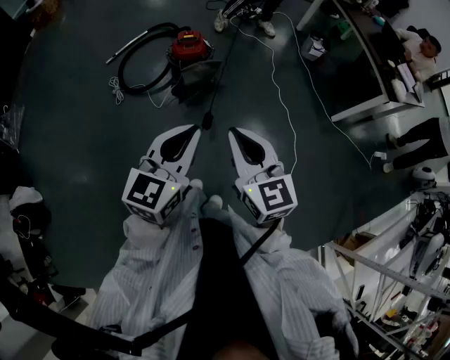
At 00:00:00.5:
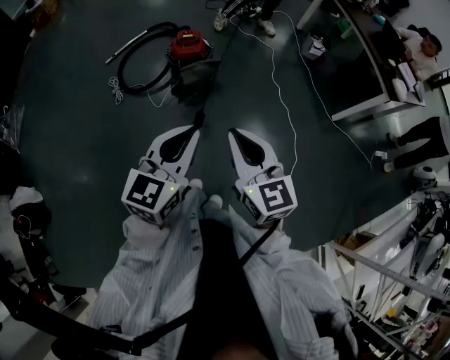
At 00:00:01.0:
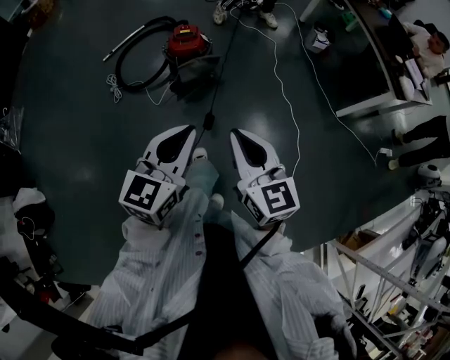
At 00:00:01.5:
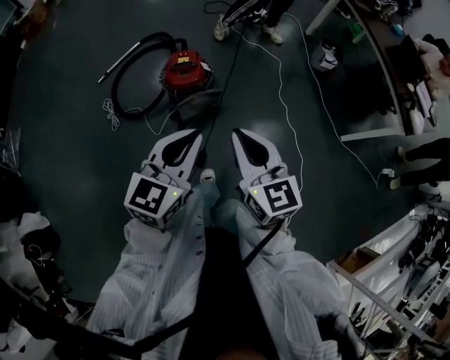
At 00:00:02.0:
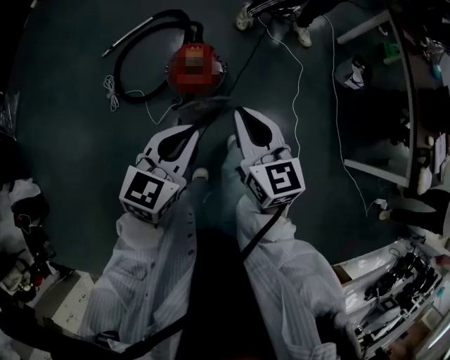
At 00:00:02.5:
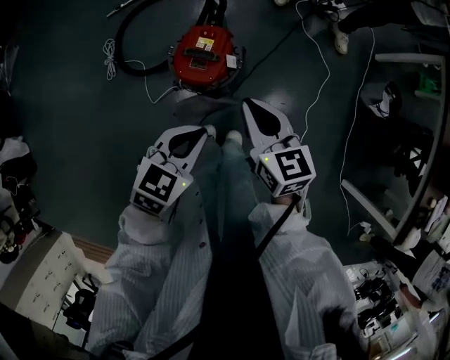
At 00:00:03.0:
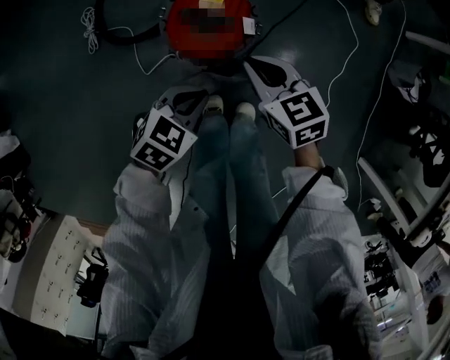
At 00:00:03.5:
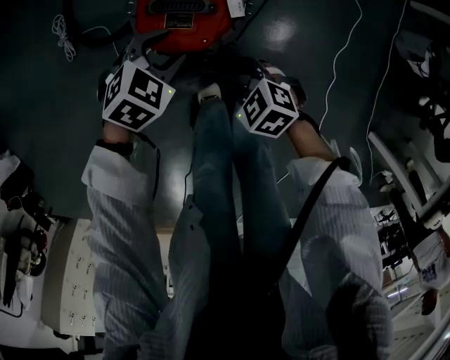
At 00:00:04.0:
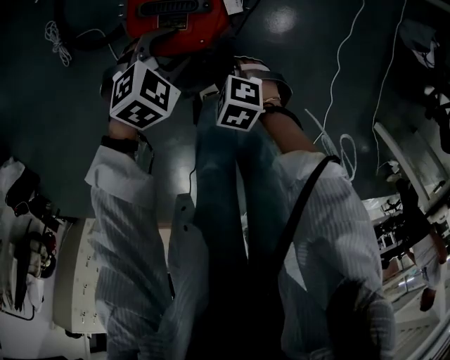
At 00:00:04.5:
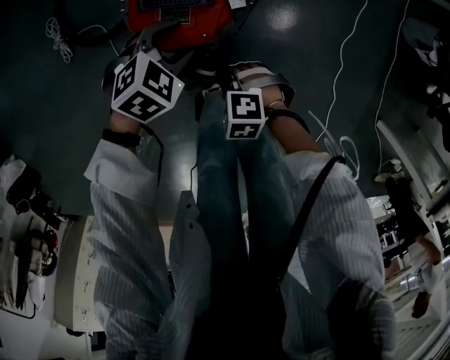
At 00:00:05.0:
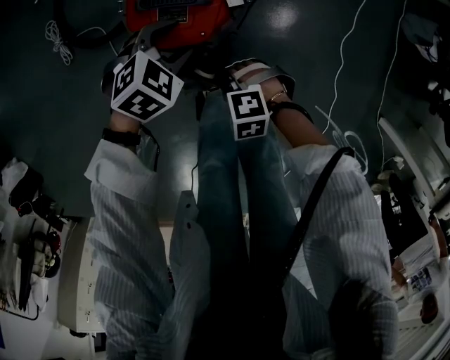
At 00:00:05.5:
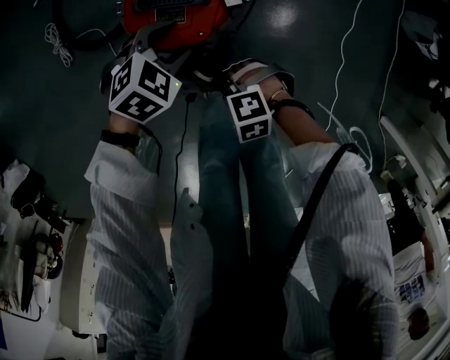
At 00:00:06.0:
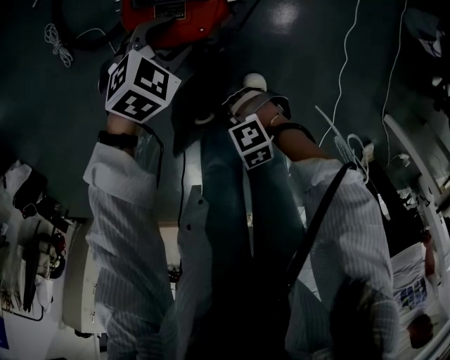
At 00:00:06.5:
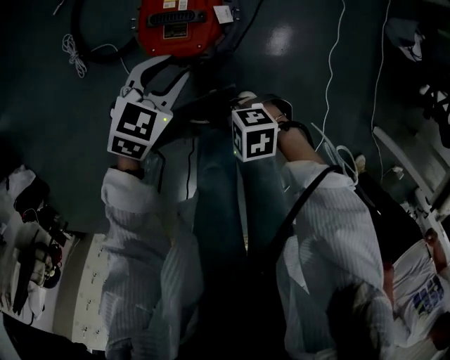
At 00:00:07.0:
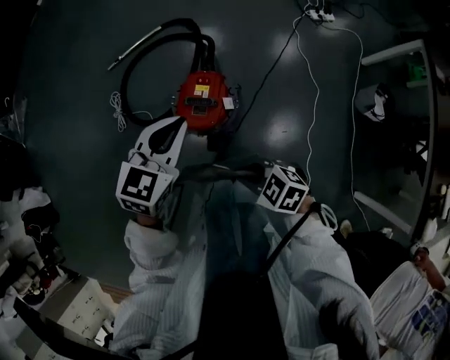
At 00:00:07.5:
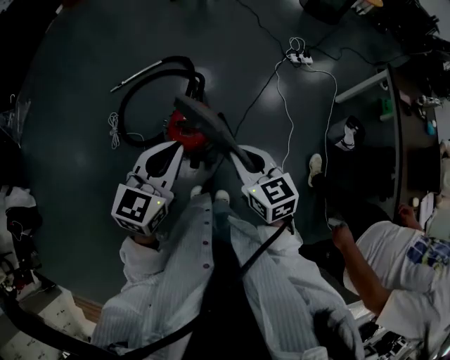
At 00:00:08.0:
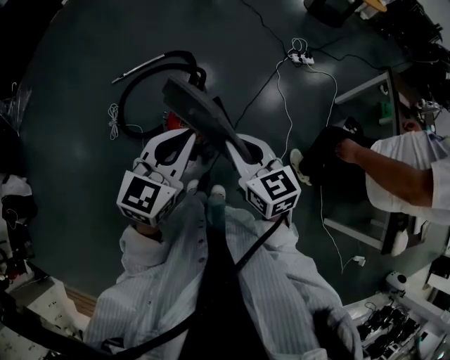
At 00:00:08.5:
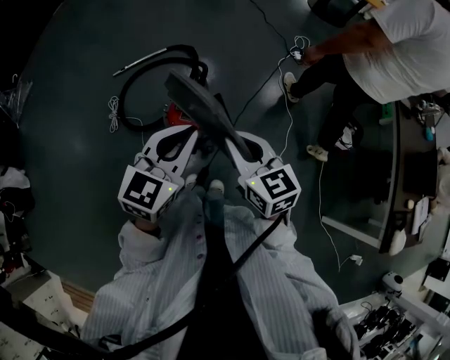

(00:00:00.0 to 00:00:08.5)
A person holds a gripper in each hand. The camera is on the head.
00:00:00.0 - 00:00:02.0: Both grippers are carried forward, roughly 50 cm.
00:00:02.0 - 00:00:04.0: The two grippers go roughly 60 cm downward. The left gripper points its fingers some 40 degrees further downward, and opens its fingers; the right gripper tilts its fingers roughly 60 degrees downward, and opens.
00:00:04.0 - 00:00:06.5: Both grippers move upward, roughly 15 cm. The left gripper swivels about 20 degrees. Meanwhile the right gripper turns by roughly 30 degrees, and closes its fingers.
00:00:06.5 - 00:00:08.5: The two grippers go about 50 cm upward. The left gripper tips its fingers upward by some 30 degrees, and closes, while the right gripper turns by some 70 degrees.

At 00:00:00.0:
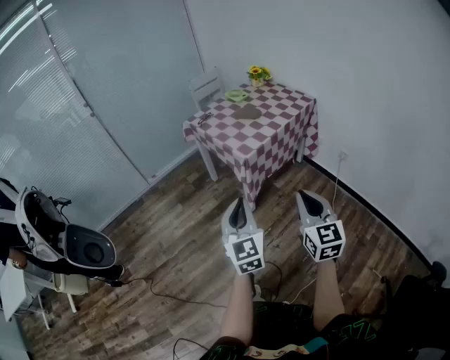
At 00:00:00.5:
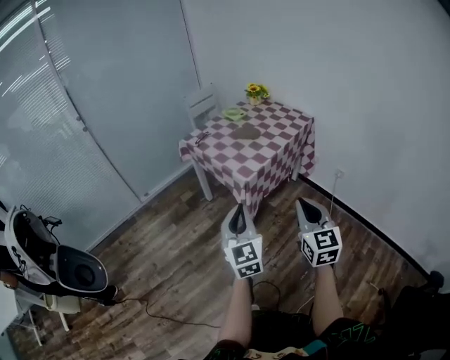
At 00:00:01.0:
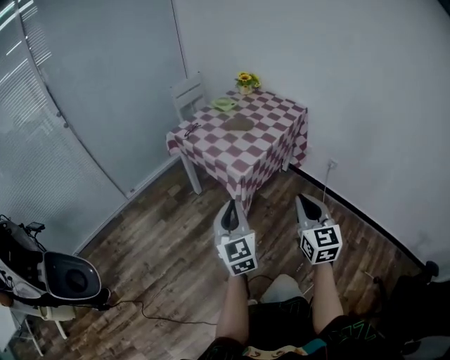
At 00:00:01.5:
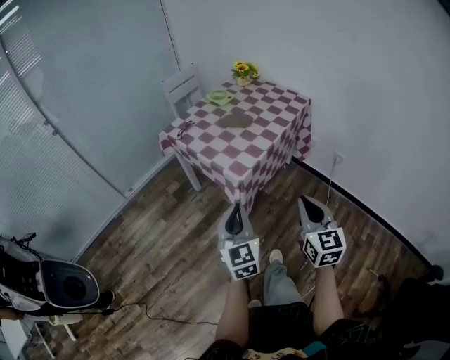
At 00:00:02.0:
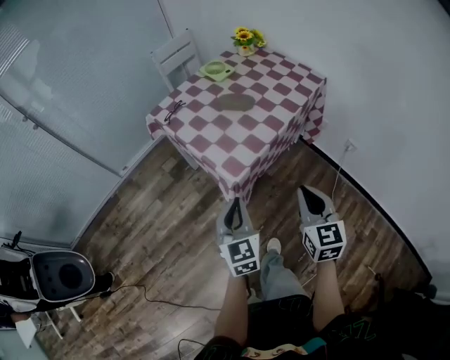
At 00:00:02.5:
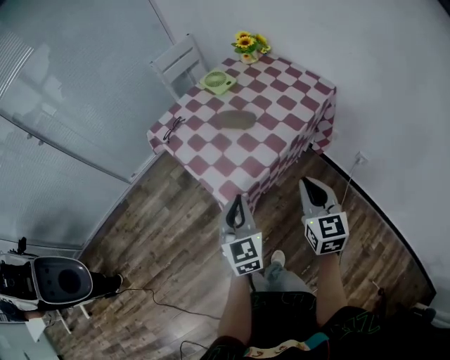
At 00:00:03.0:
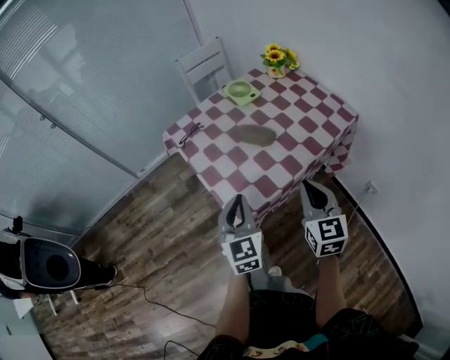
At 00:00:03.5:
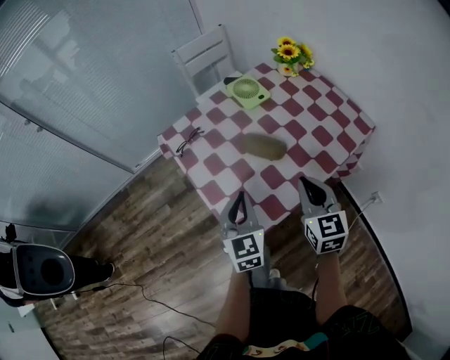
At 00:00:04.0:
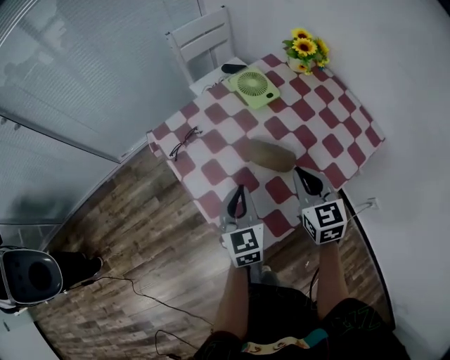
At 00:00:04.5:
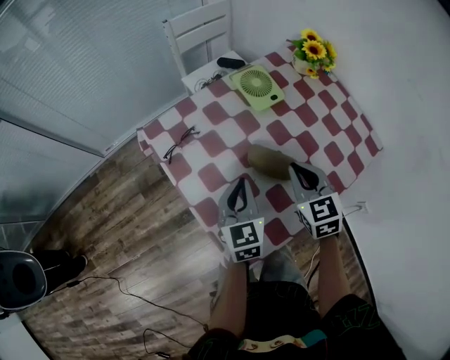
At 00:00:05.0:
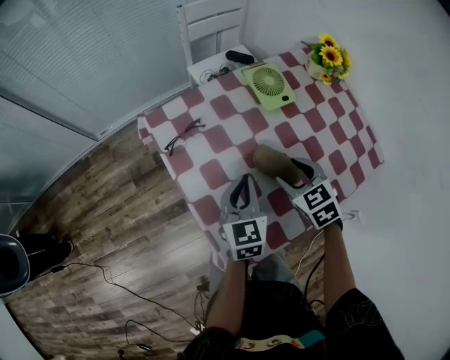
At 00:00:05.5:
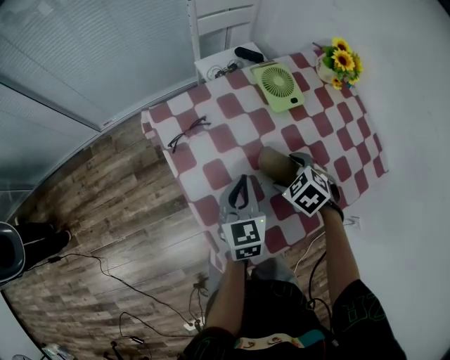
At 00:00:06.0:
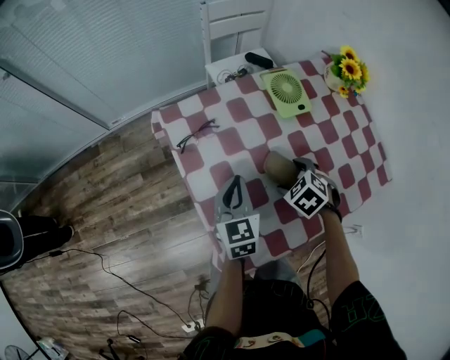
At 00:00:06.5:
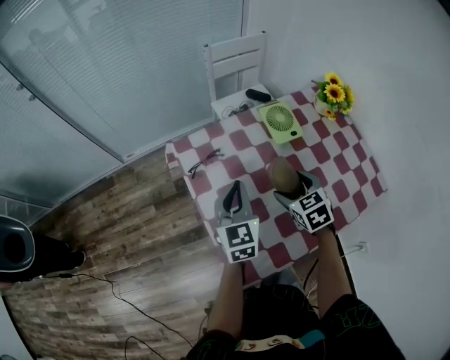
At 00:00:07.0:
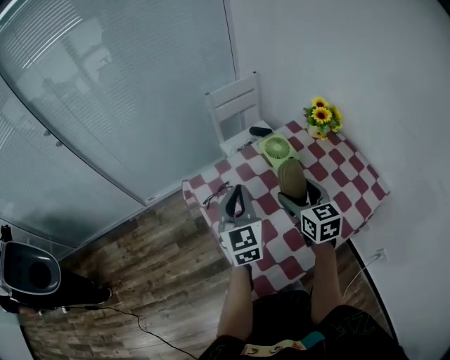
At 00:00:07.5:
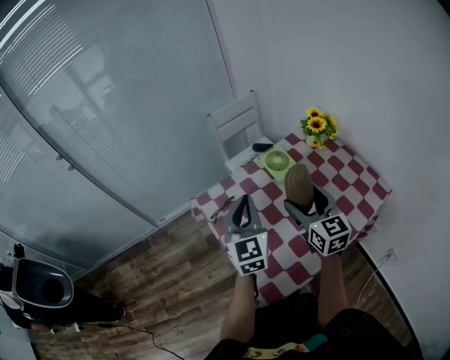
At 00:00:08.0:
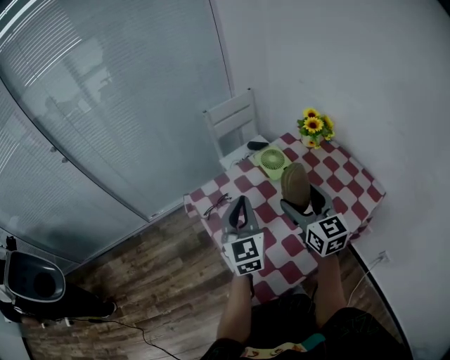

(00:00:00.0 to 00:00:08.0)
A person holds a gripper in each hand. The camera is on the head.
00:00:00.0 - 00:00:02.0: The right gripper shifts some 30 cm forward. Meanwhile the left gripper is displaced forward and downward by about 30 cm.
00:00:02.0 - 00:00:04.0: Both grippers move forward, approximately 40 cm. The right gripper turns by some 20 degrees.
00:00:04.0 - 00:00:06.0: The left gripper travels forward by roughly 10 cm; the right gripper heads downward and forward, covering roughly 15 cm, tips its fingers downward by about 50 degrees, and opens.
00:00:06.0 - 00:00:08.0: The two grippers go approximately 25 cm upward. The left gripper changes its angle by approximately 30 degrees, while the right gripper angles its fingers upward, by roughly 70 degrees.

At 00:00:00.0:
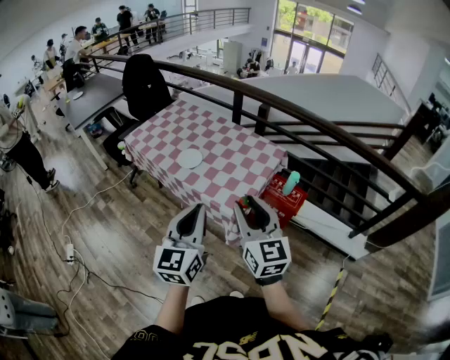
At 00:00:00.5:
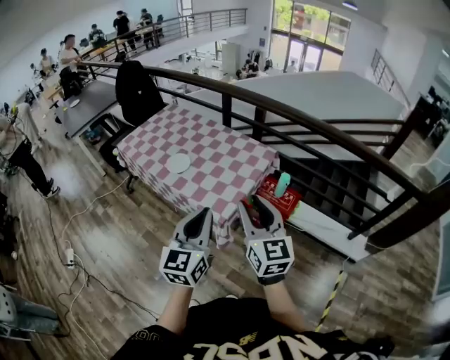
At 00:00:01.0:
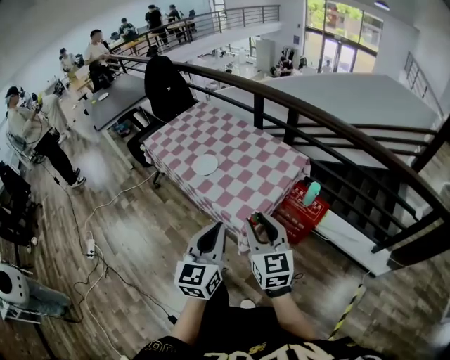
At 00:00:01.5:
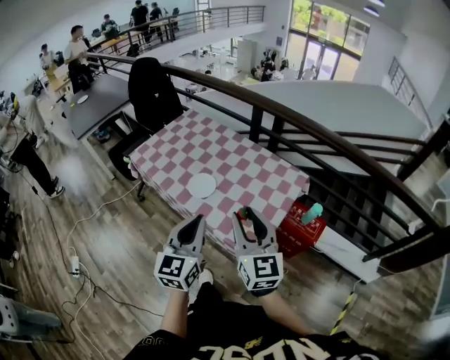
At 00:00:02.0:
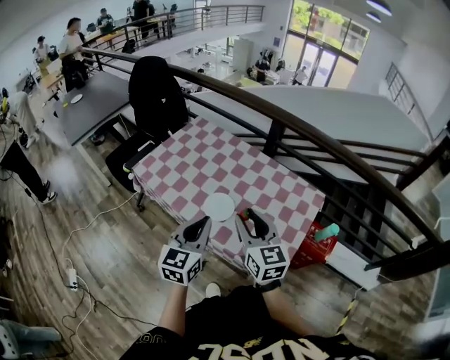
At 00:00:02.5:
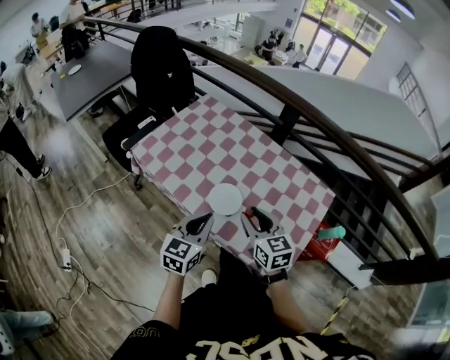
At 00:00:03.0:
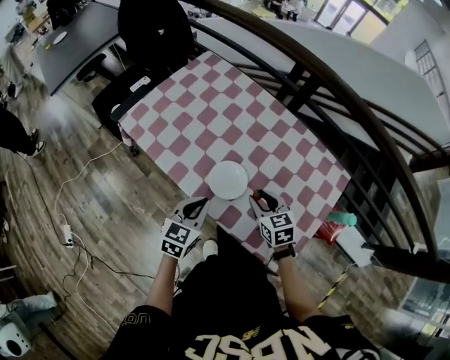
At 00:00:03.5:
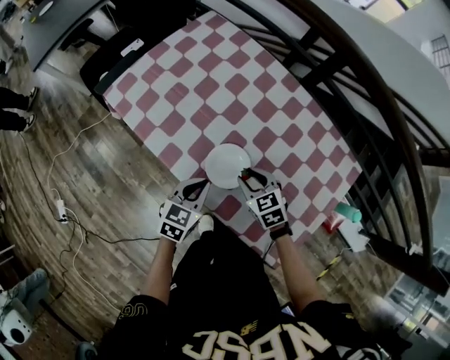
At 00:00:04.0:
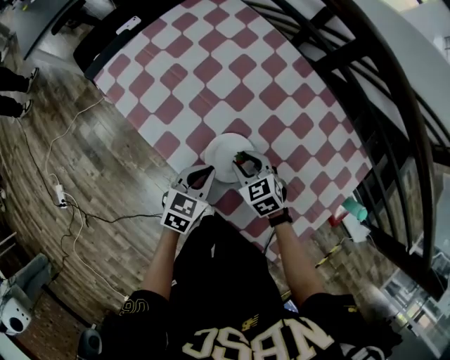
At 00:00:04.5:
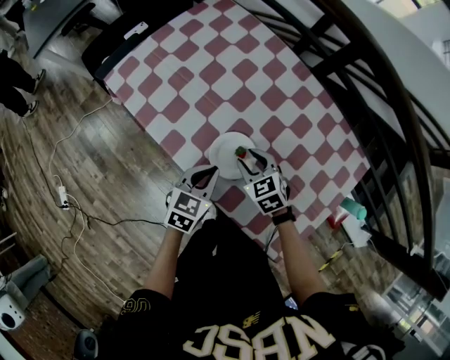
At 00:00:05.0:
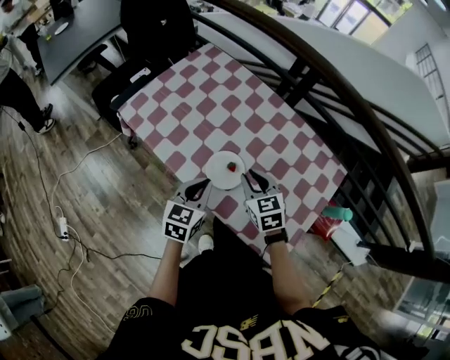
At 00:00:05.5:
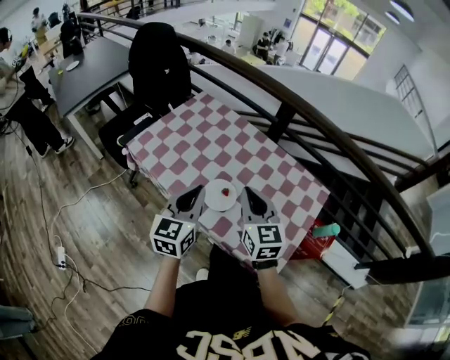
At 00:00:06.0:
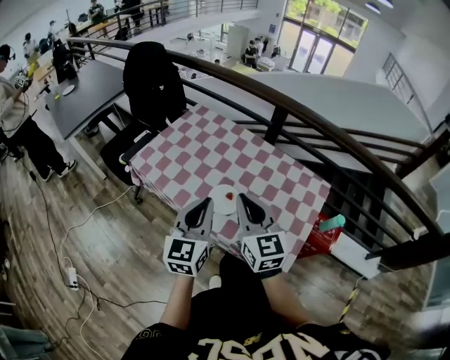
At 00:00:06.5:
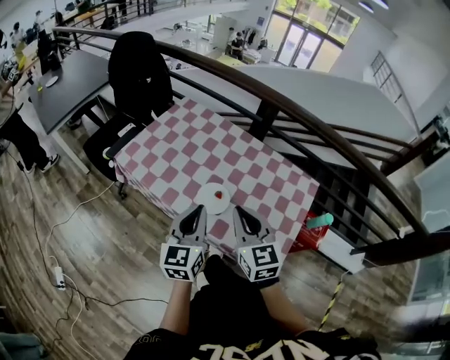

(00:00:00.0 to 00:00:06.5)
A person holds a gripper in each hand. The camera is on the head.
00:00:00.0 - 00:00:02.0: The two grippers go roughly 35 cm forward and to the left.
00:00:02.0 - 00:00:04.5: The grippers both shift downward and forward by some 30 cm. The right gripper points its fingers some 40 degrees further downward. The left gripper changes its angle by some 30 degrees.
00:00:04.5 - 00:00:06.5: Both grippers move upward, approximately 30 cm. The right gripper tips its fingers upward by roughly 30 degrees, and closes its fingers. Meanwhile the left gripper tilts its fingers about 30 degrees upward.

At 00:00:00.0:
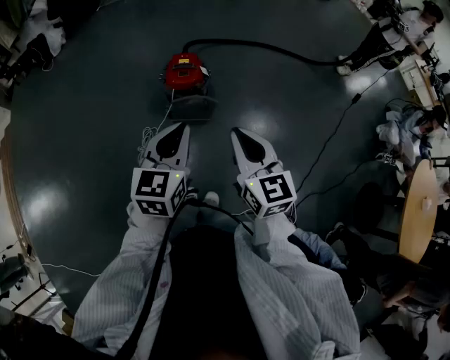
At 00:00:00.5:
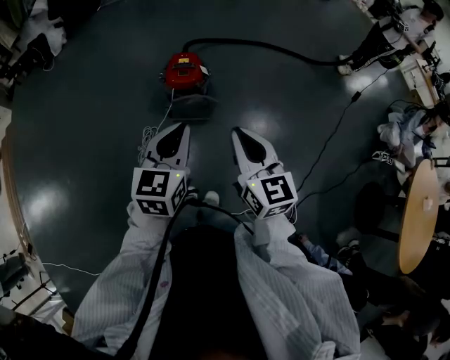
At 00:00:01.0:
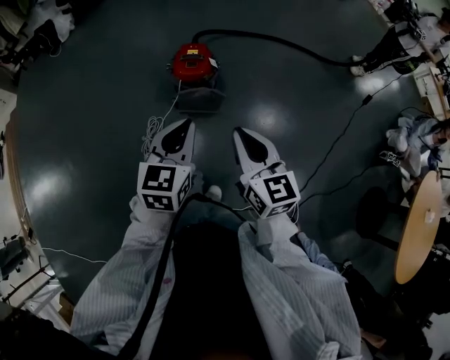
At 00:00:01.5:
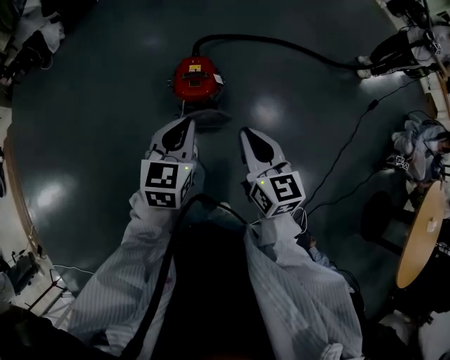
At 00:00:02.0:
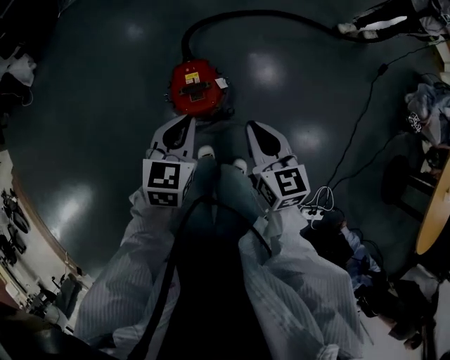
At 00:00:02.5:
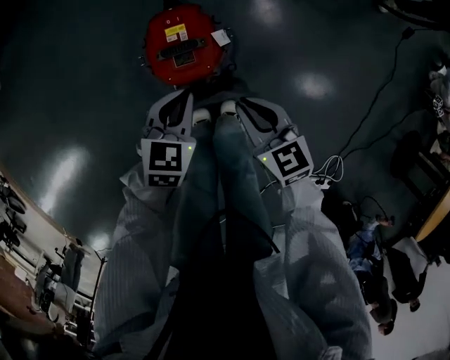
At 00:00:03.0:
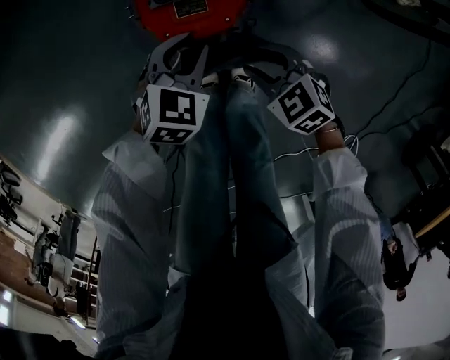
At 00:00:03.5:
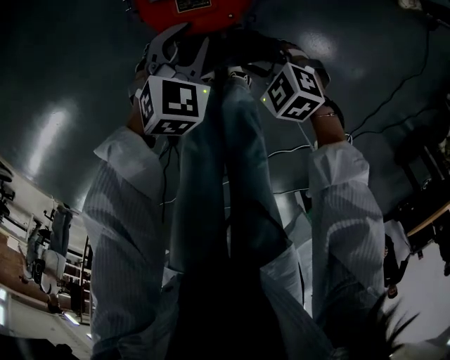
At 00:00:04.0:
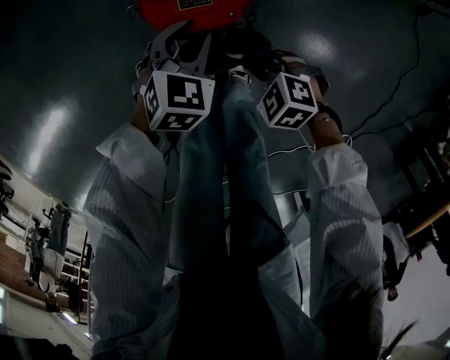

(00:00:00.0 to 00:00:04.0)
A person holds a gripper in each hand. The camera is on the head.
00:00:00.0 - 00:00:02.0: Both grippers move forward and downward, some 40 cm. The left gripper turns by some 20 degrees.
00:00:02.0 - 00:00:04.0: Both grippers move downward, roughly 40 cm. The right gripper tips its fingers downward by some 40 degrees, and opens, then closes once more. Meanwhile the left gripper changes its angle by some 20 degrees, and opens its fingers.
